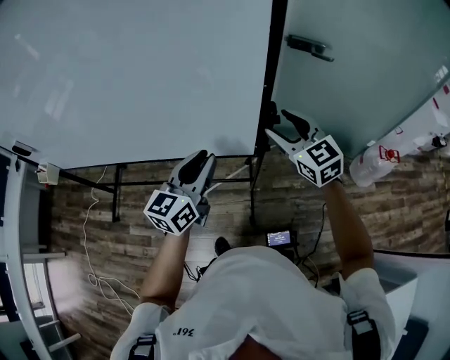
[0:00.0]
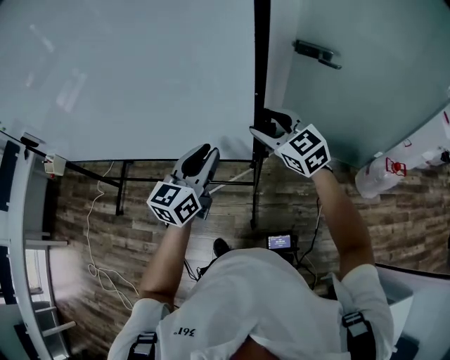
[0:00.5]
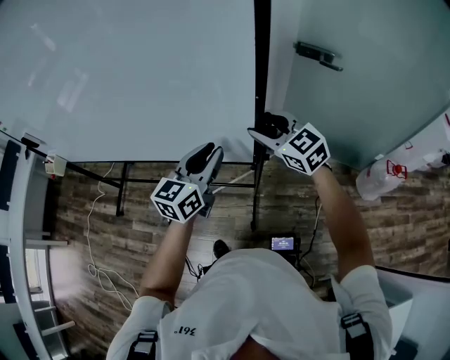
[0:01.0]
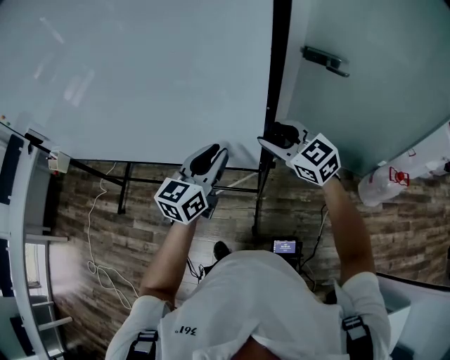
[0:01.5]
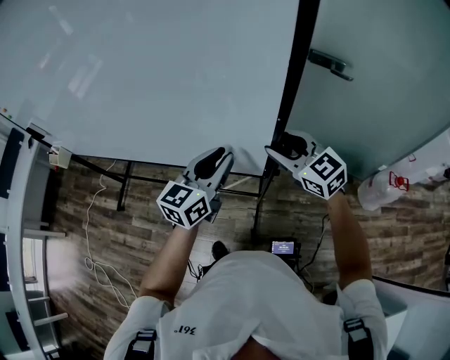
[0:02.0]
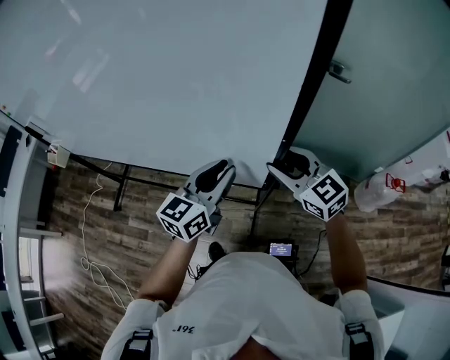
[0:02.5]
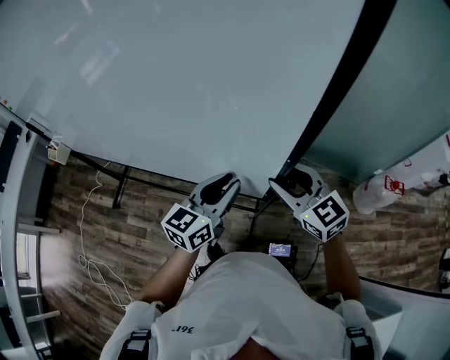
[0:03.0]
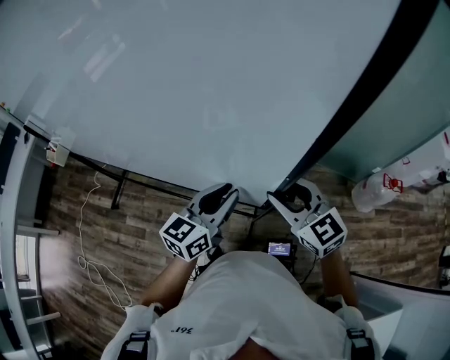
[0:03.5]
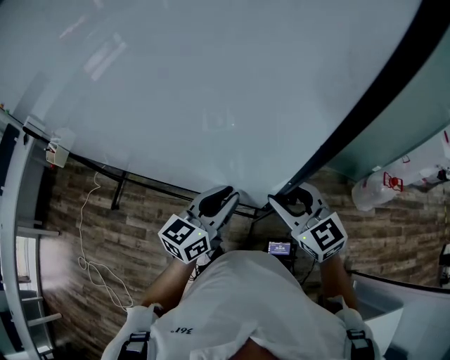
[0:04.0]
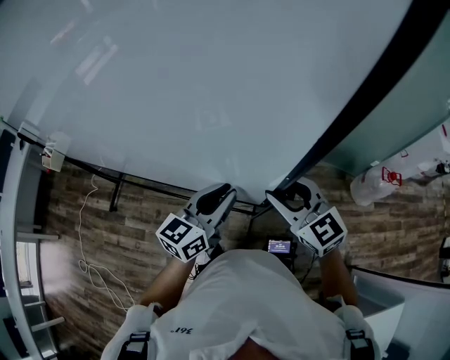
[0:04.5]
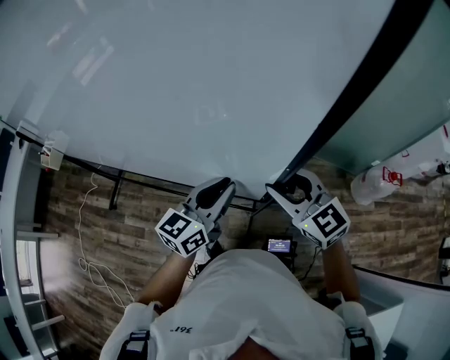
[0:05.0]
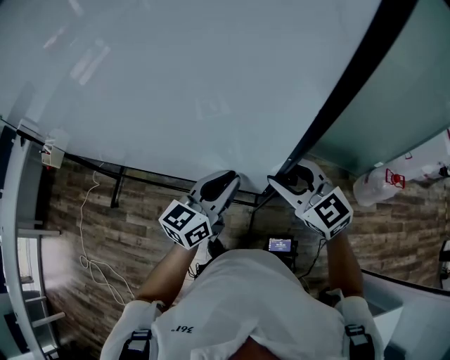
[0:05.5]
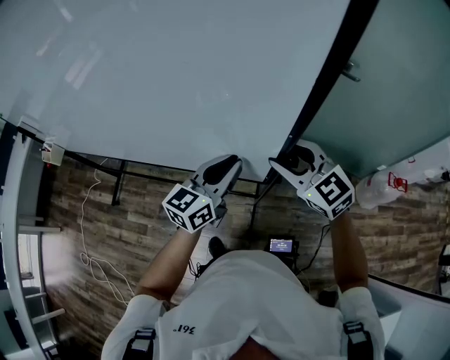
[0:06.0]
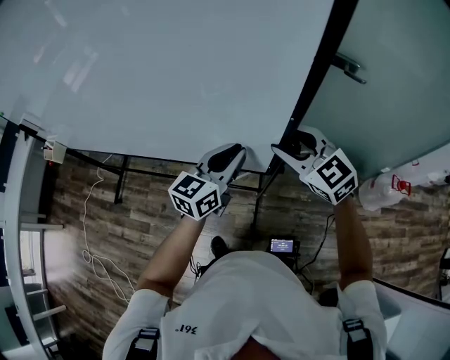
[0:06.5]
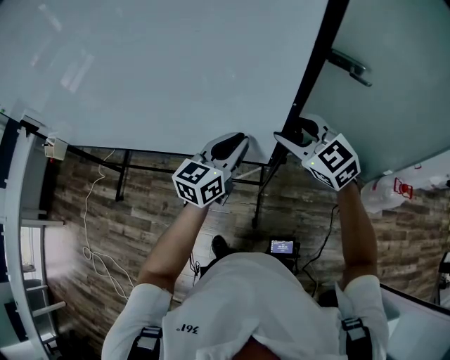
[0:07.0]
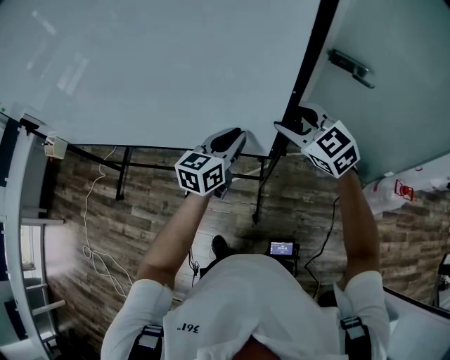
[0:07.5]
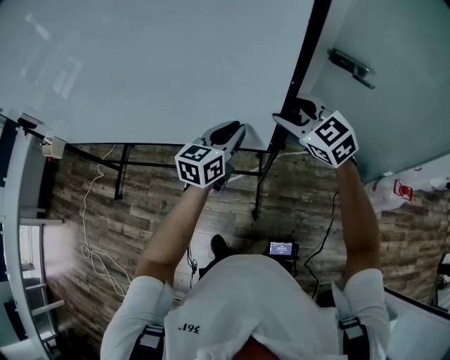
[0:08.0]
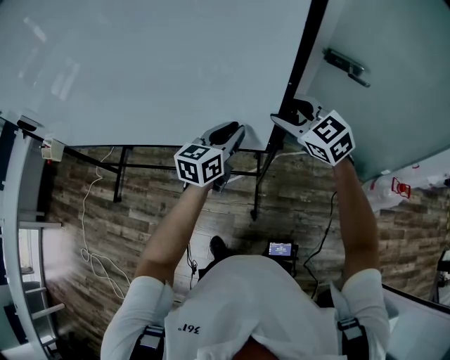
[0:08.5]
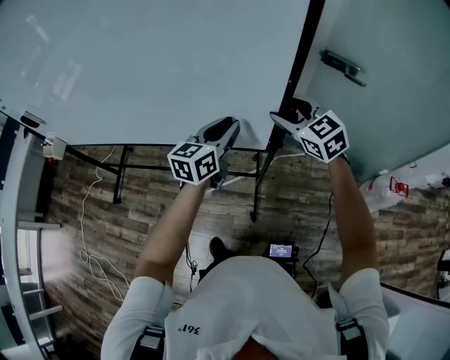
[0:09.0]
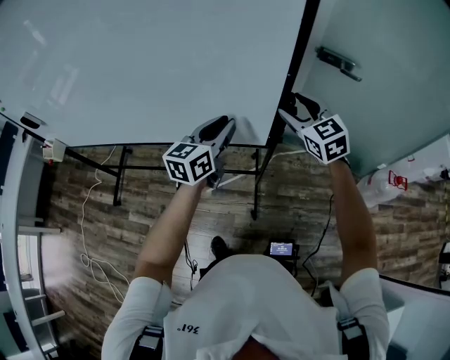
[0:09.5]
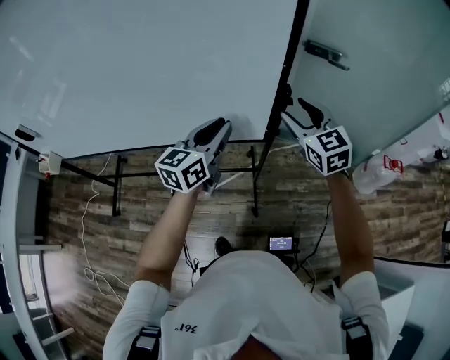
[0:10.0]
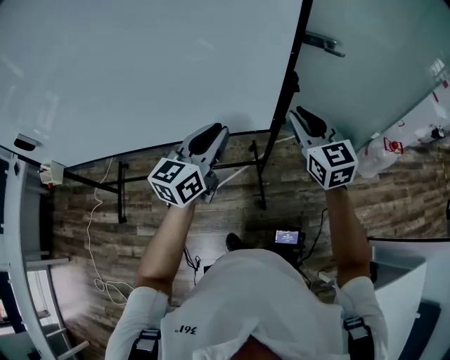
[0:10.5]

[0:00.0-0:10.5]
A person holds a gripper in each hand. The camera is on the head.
0:00.0 to 0:02.0: The grippers make only small movements.
0:02.0 to 0:04.0: The two grippers go about 10 cm backward.
0:04.0 to 0:06.5: The two grippers go roughly 15 cm forward.
0:06.5 to 0:08.5: Both grippers travel together forward, some 10 cm.
0:08.5 to 0:10.5: The right gripper heads backward, covering about 15 cm, rotates some 40 degrees, and closes up. Meanwhile the left gripper heads backward, to the left and upward, covering approximately 15 cm.

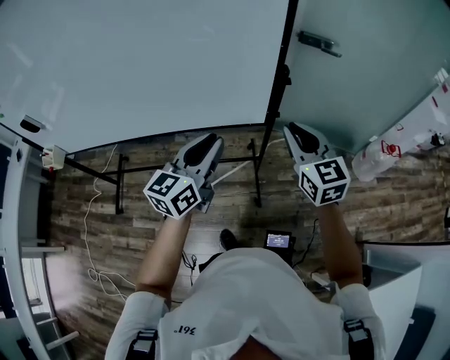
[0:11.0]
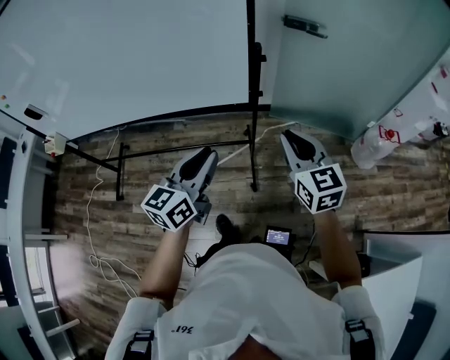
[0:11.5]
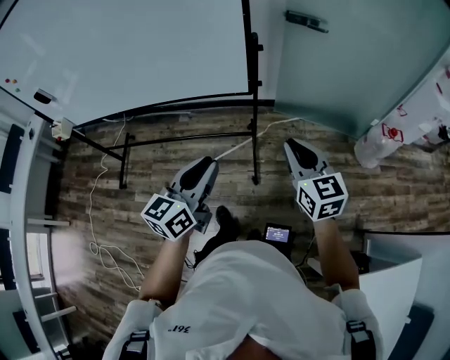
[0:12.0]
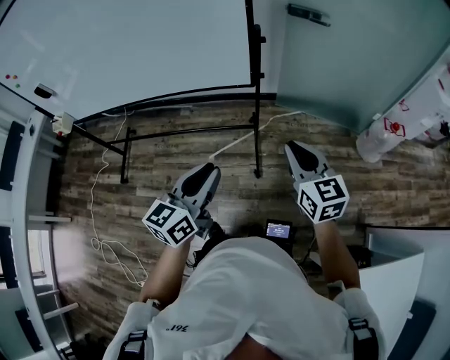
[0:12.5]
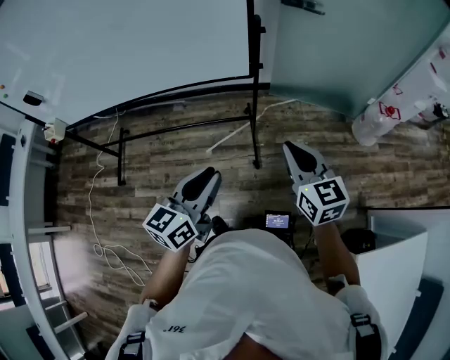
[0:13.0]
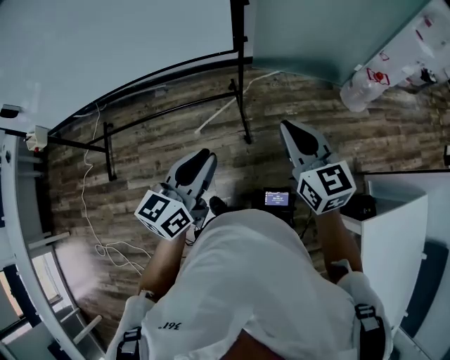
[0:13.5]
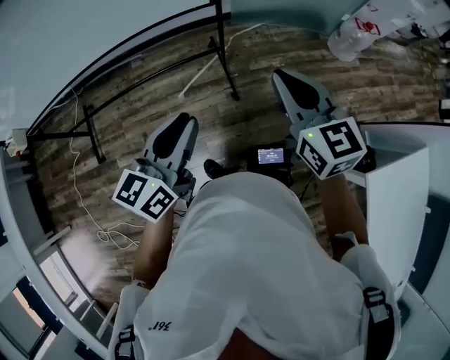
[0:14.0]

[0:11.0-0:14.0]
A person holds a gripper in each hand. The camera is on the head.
0:11.0 to 0:12.5: The right gripper shifts approximately 20 cm backward and to the right. Meanwhile the left gripper heads backward, covering roughly 20 cm.
0:12.5 to 0:14.0: The left gripper heads to the left, covering about 5 cm; the right gripper travels to the left and backward by about 10 cm.
